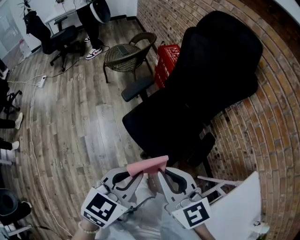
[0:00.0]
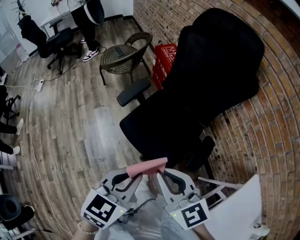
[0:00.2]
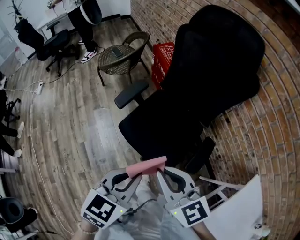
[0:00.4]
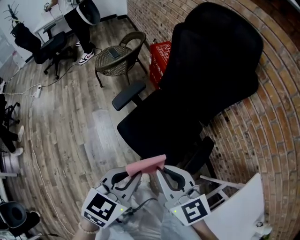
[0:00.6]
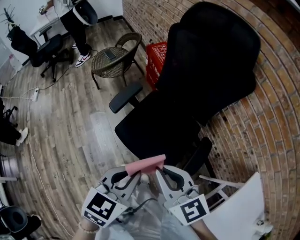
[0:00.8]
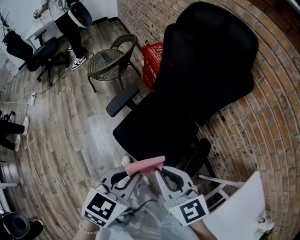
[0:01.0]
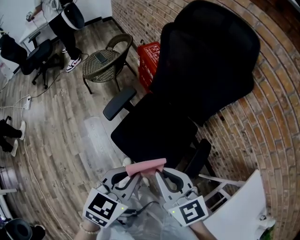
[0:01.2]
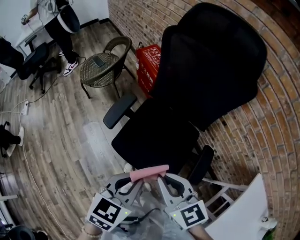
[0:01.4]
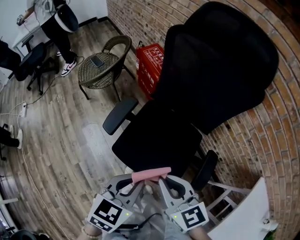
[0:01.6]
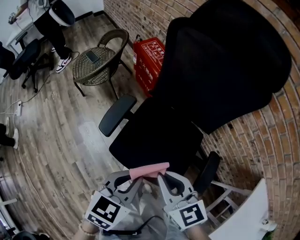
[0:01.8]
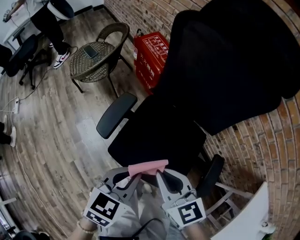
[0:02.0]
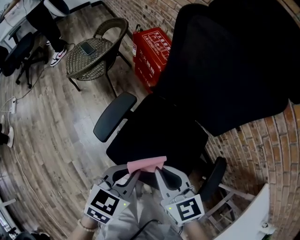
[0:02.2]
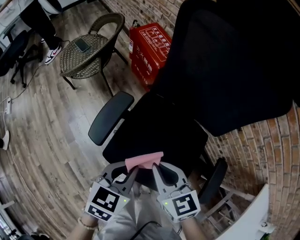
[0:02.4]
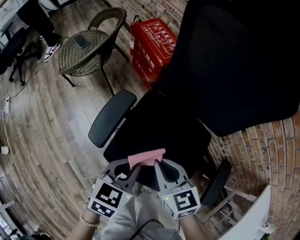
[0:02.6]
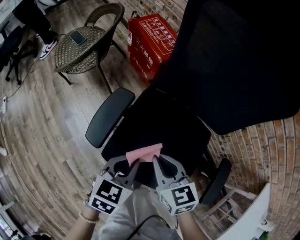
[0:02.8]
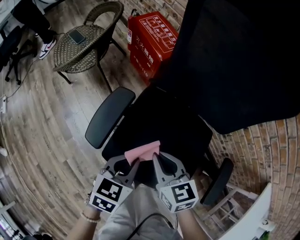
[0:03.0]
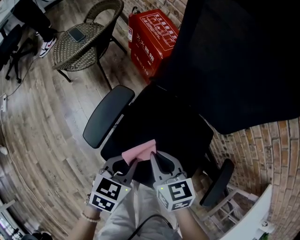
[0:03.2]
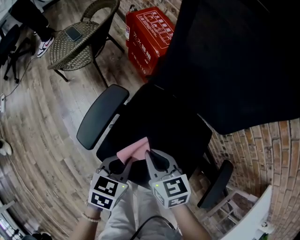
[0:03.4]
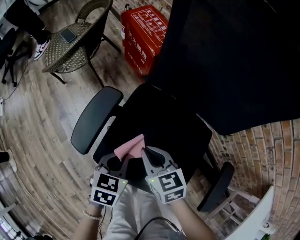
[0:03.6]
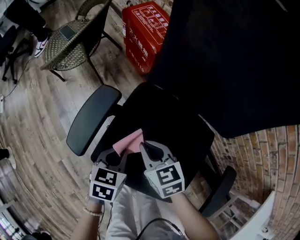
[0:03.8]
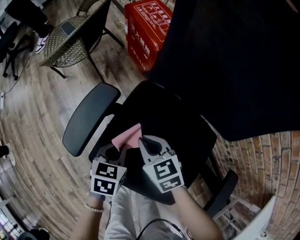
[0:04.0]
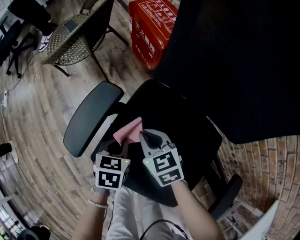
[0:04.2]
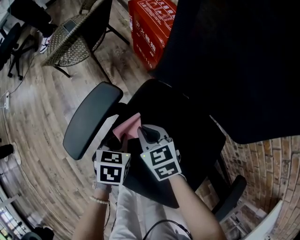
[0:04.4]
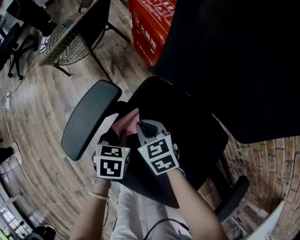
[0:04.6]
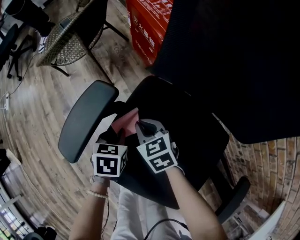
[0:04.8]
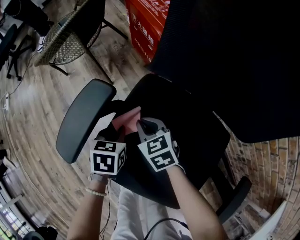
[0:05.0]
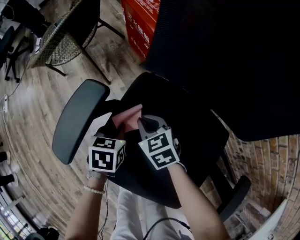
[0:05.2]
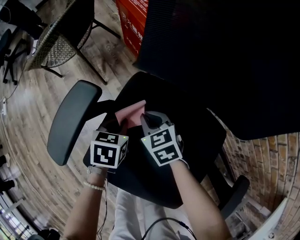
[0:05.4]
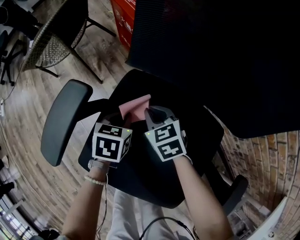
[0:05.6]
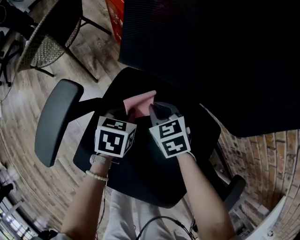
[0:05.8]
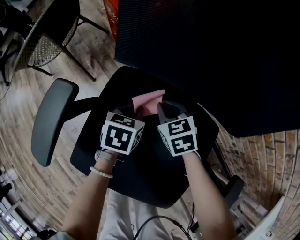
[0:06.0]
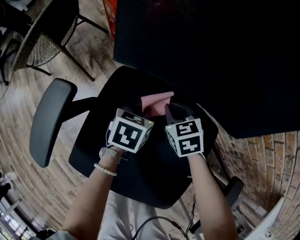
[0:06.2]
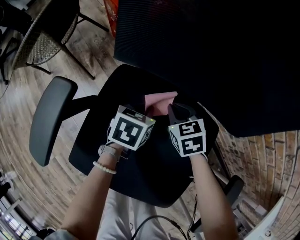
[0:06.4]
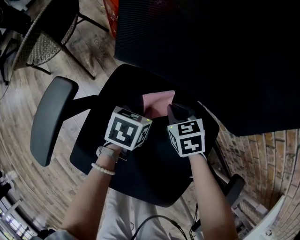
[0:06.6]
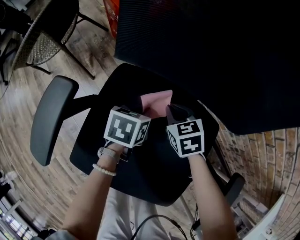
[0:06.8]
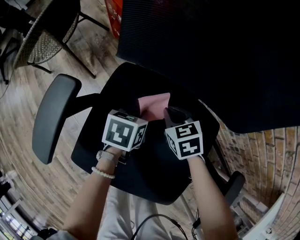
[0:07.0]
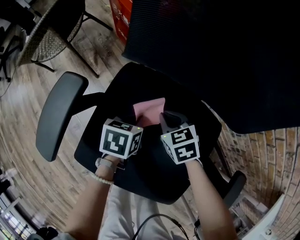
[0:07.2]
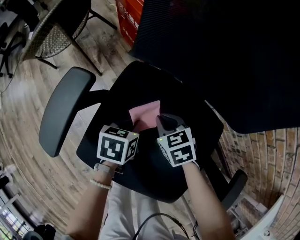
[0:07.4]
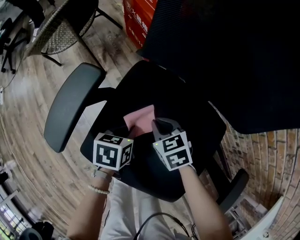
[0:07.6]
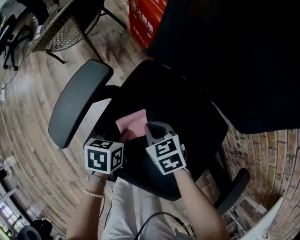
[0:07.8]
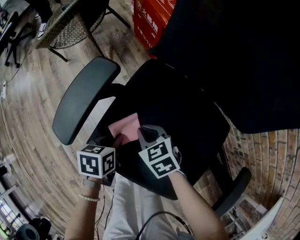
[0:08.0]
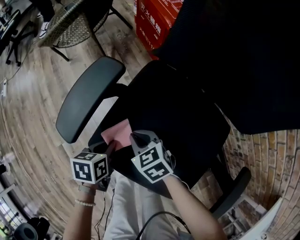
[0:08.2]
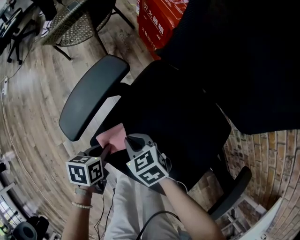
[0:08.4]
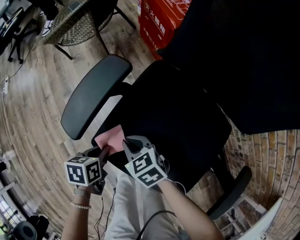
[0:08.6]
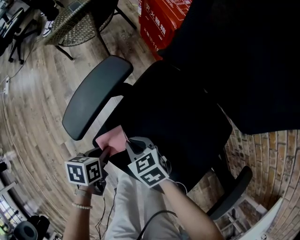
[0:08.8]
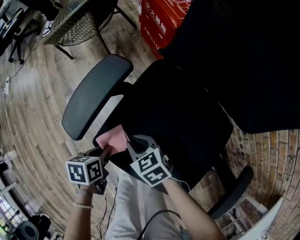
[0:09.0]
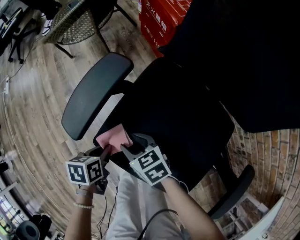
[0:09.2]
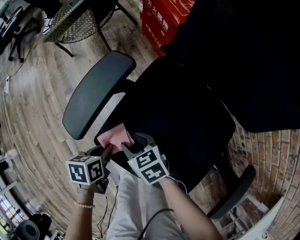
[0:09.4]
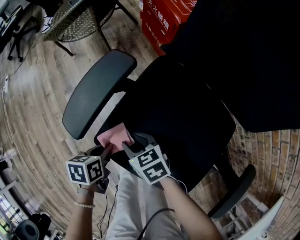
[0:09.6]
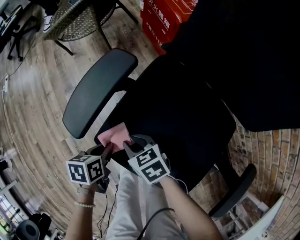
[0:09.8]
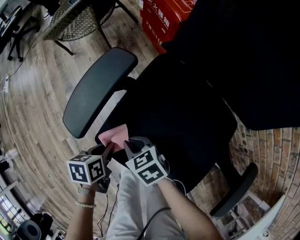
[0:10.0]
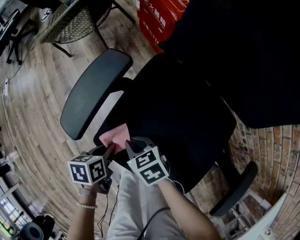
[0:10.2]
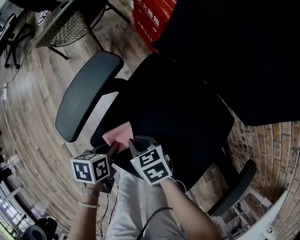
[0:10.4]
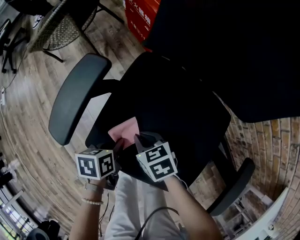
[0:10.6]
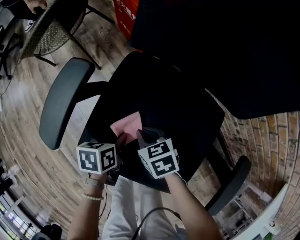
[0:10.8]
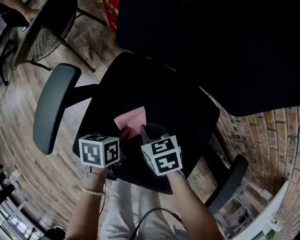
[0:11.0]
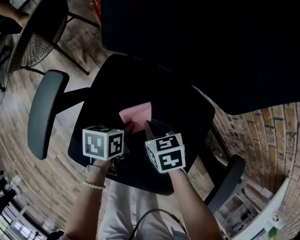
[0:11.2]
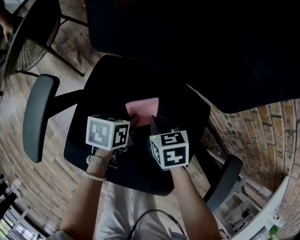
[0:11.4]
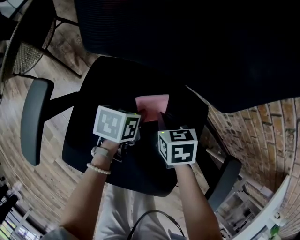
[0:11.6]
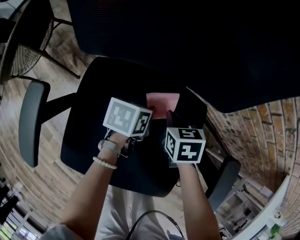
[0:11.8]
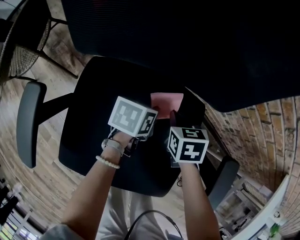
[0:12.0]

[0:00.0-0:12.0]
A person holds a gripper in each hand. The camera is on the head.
0:00.0 to 0:01.6: The left gripper heads forward, covering about 20 cm, while the right gripper goes roughly 20 cm forward and downward.
0:01.6 to 0:03.0: The grippers both shift downward and forward by approximately 30 cm.
0:03.0 to 0:04.4: The two grippers go roughly 20 cm downward and forward. The left gripper turns by about 30 degrees.
0:04.4 to 0:06.0: The right gripper moves to the right and downward, some 20 cm, while the left gripper shifts about 15 cm to the right.
0:06.0 to 0:07.6: The grippers both shift backward and to the left by about 15 cm.
0:07.6 to 0:09.0: The grippers both shift to the left and backward by approximately 20 cm.
0:09.0 to 0:10.4: The right gripper opens, then closes once more.
0:10.4 to 0:12.0: The right gripper changes place by roughly 35 cm, and changes its angle by about 50 degrees. The left gripper ends up some 35 cm from where it was, and changes its angle by approximately 40 degrees.

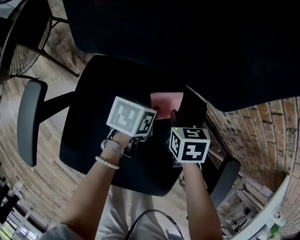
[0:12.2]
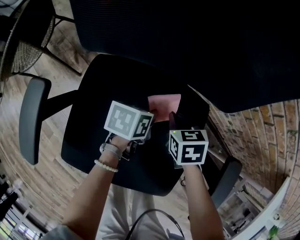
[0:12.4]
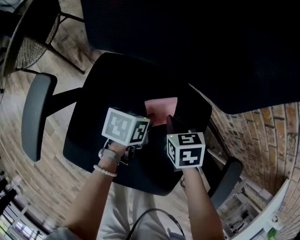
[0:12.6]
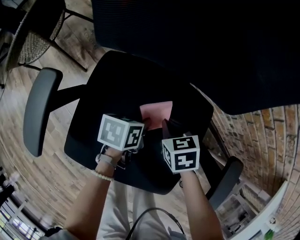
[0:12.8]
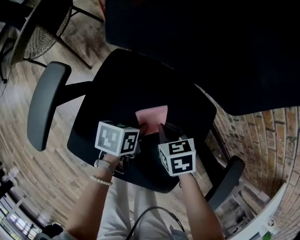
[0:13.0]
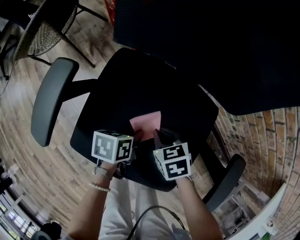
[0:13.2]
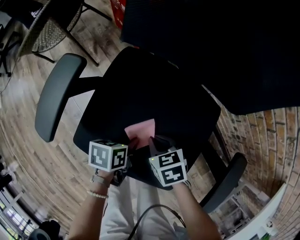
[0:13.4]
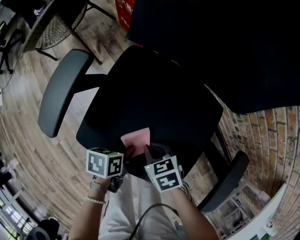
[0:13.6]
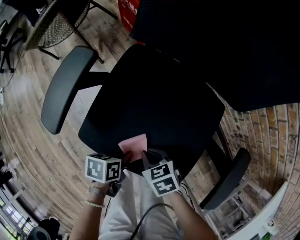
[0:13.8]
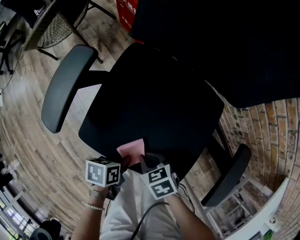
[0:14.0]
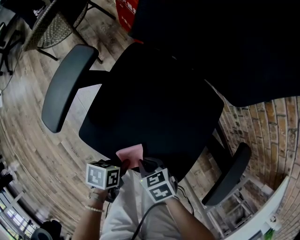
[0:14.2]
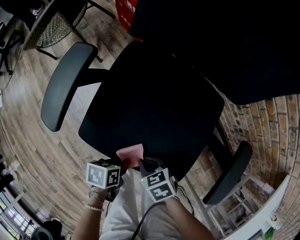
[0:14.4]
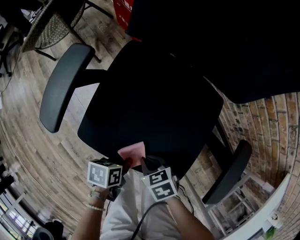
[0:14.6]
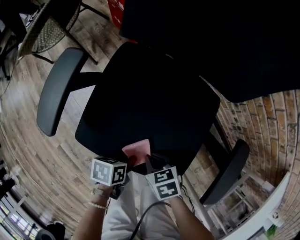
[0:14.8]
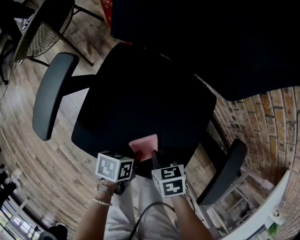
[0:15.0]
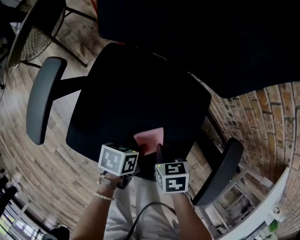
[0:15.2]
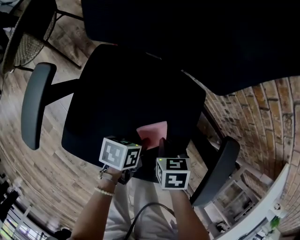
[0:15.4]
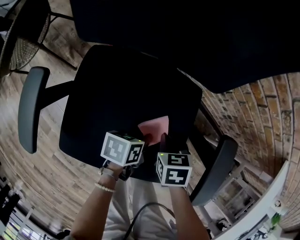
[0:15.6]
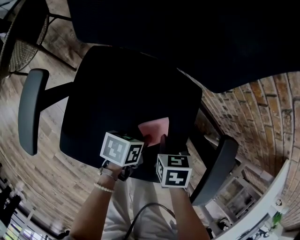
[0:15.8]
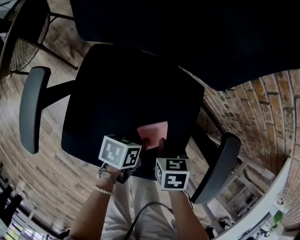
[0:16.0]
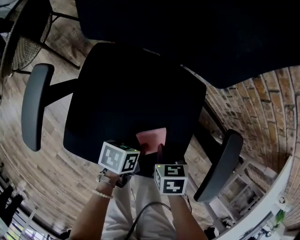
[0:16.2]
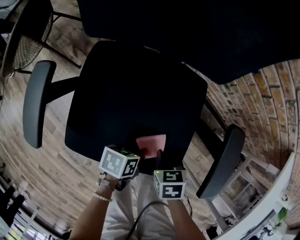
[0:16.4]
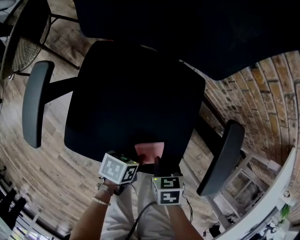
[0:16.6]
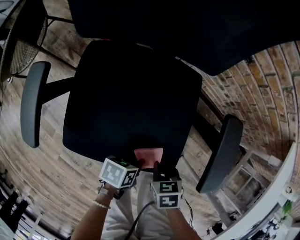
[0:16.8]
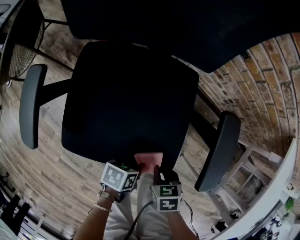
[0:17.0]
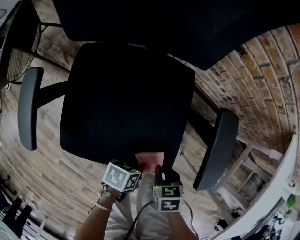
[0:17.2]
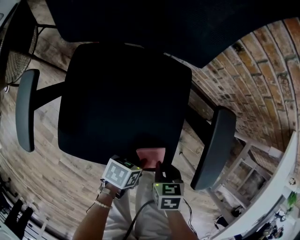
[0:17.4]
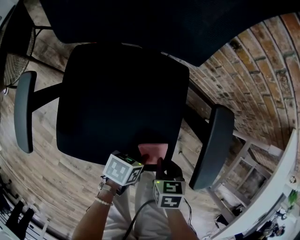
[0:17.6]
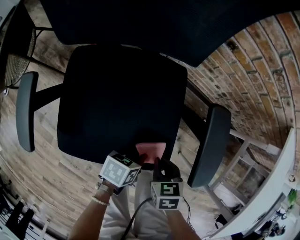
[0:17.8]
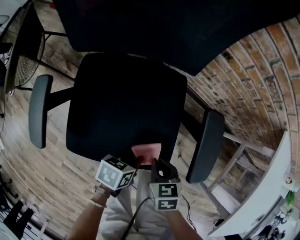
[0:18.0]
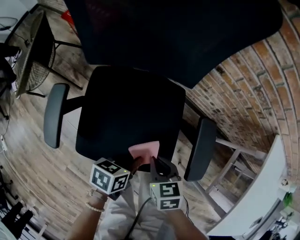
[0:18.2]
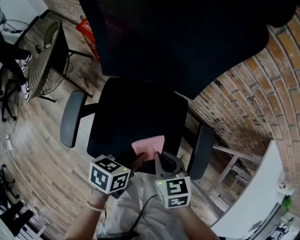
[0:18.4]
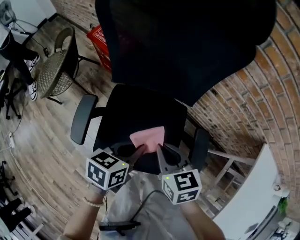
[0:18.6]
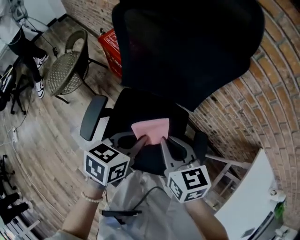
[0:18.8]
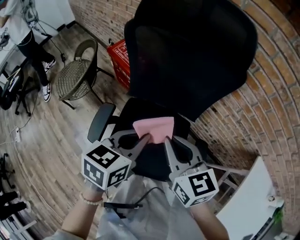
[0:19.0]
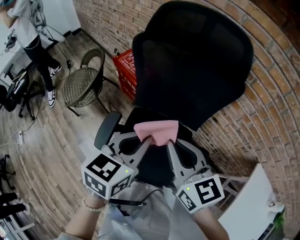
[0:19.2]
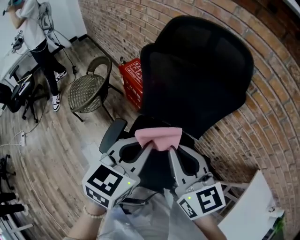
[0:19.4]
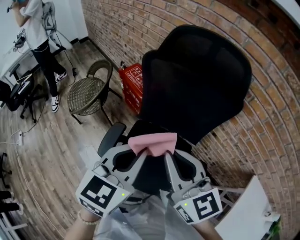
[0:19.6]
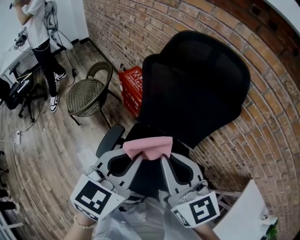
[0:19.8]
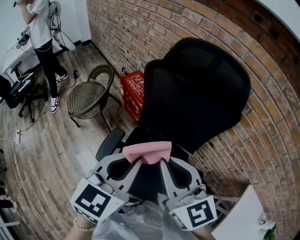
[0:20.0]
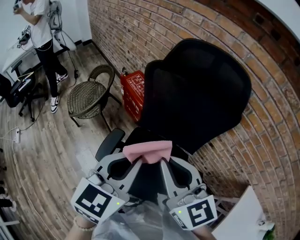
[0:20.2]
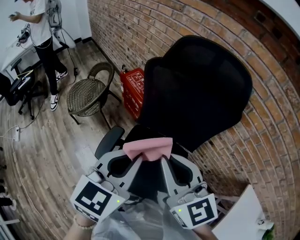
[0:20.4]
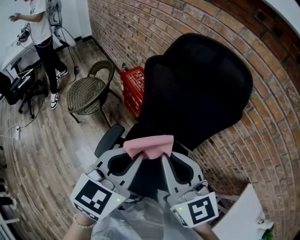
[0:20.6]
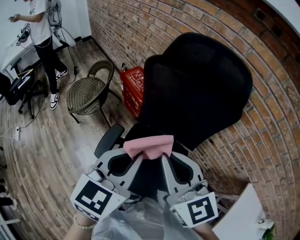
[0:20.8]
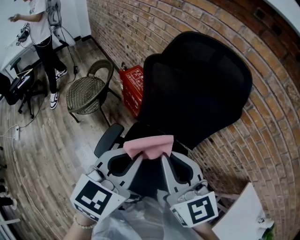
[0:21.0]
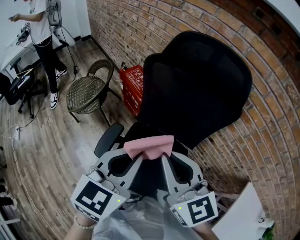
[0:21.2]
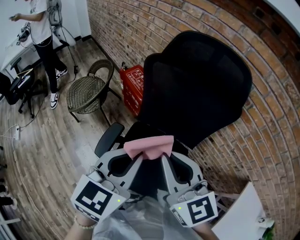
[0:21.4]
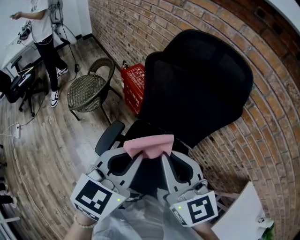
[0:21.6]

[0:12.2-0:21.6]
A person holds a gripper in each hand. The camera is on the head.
0:12.2 to 0:13.8: The right gripper ends up roughly 30 cm from where it was, and turns by about 40 degrees, while the left gripper ends up roughly 30 cm from where it was, and turns by some 30 degrees.
0:13.8 to 0:15.4: The left gripper shifts by some 15 cm. Meanwhile the right gripper moves approximately 15 cm, and turns by approximately 30 degrees.
0:15.4 to 0:17.0: The right gripper moves about 20 cm, while the left gripper ends up some 15 cm from where it was.
0:17.0 to 0:18.4: The two grippers go some 25 cm upward. The right gripper swivels approximately 30 degrees. Meanwhile the left gripper rotates some 30 degrees.
0:18.4 to 0:20.0: The two grippers go some 40 cm upward. The left gripper rotates roughly 50 degrees. The right gripper tips its fingers upward by some 40 degrees.
0:20.0 to 0:21.6: The two grippers keep their place.

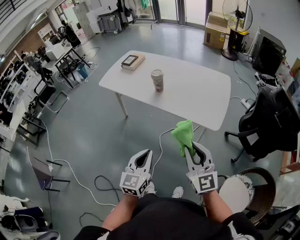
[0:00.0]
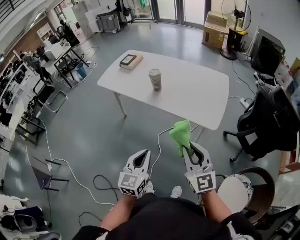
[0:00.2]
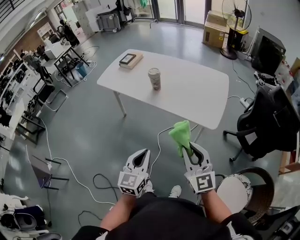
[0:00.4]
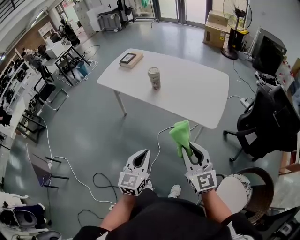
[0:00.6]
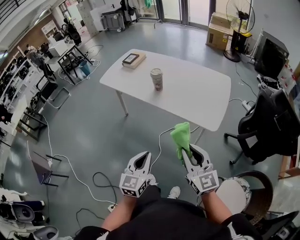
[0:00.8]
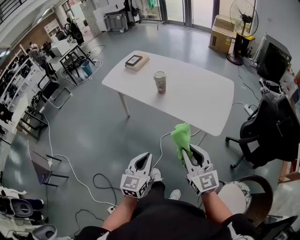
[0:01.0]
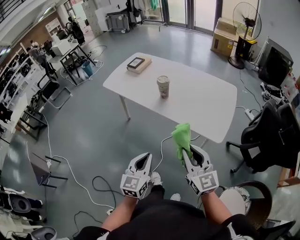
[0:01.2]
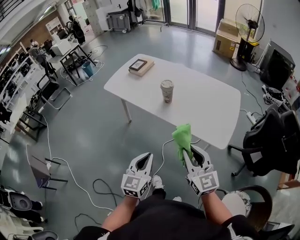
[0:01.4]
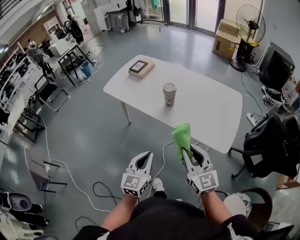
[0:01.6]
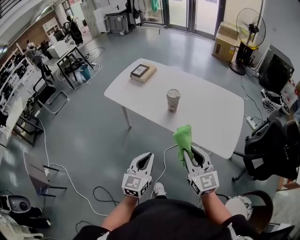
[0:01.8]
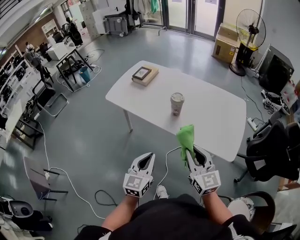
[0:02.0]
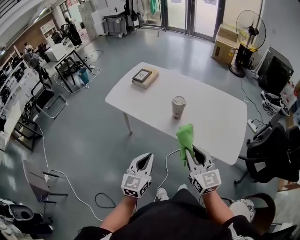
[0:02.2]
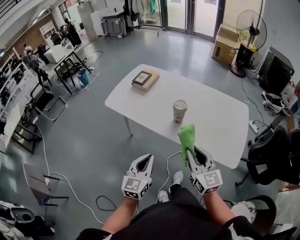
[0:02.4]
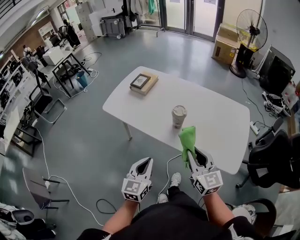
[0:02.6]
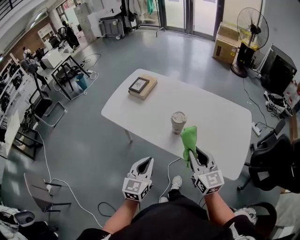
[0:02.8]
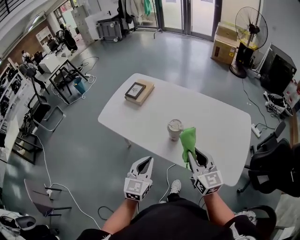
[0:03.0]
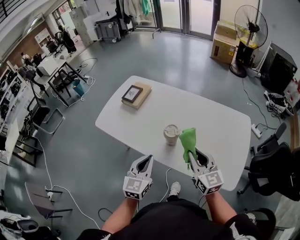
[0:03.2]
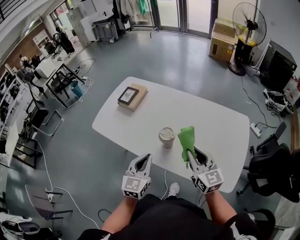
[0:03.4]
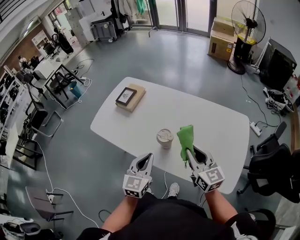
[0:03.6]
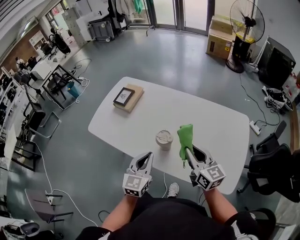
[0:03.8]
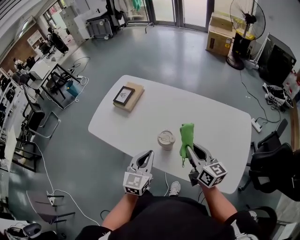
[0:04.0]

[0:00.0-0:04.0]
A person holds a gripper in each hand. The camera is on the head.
0:00.0 to 0:01.4: Both grippers move forward, roughly 10 cm.
0:01.4 to 0:02.6: The left gripper moves forward and to the left, roughly 20 cm, while the right gripper is displaced forward by some 20 cm.
0:02.6 to 0:04.0: The grippers both shift forward by roughly 20 cm. The right gripper turns by roughly 20 degrees.
